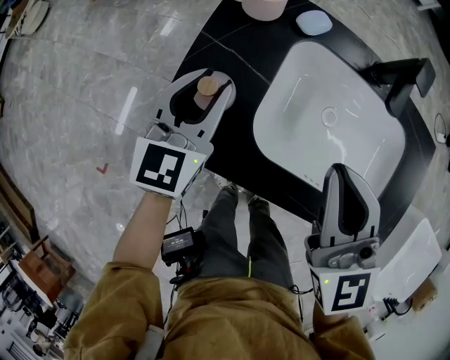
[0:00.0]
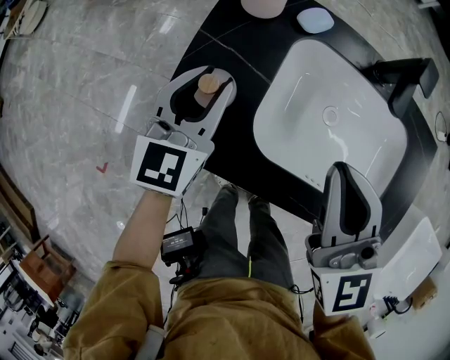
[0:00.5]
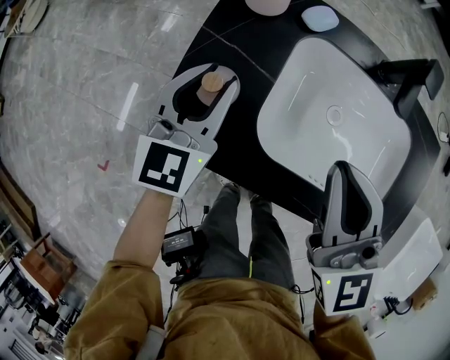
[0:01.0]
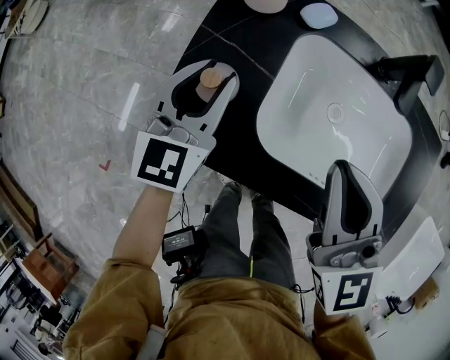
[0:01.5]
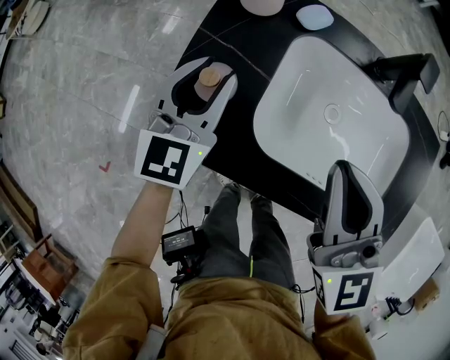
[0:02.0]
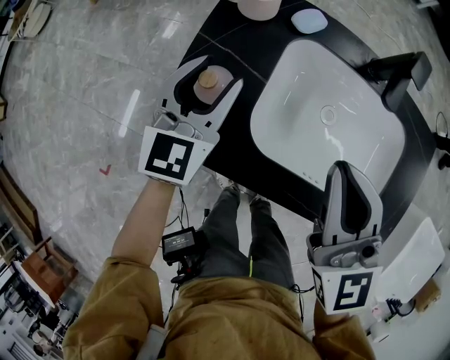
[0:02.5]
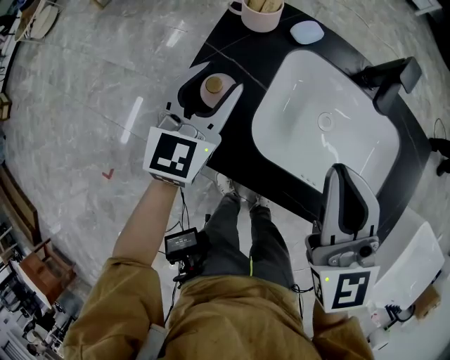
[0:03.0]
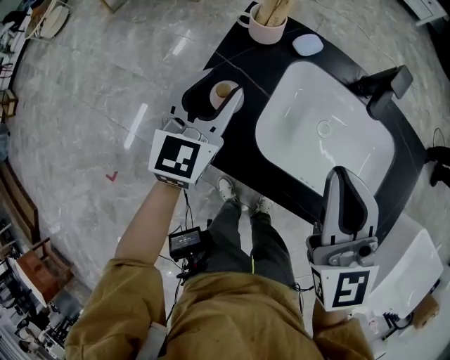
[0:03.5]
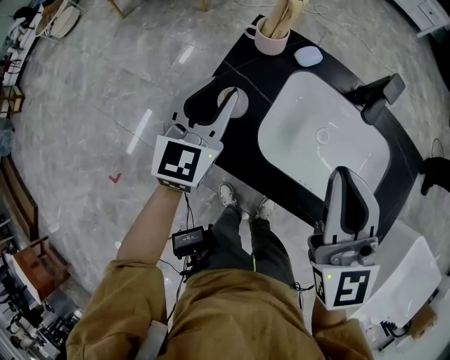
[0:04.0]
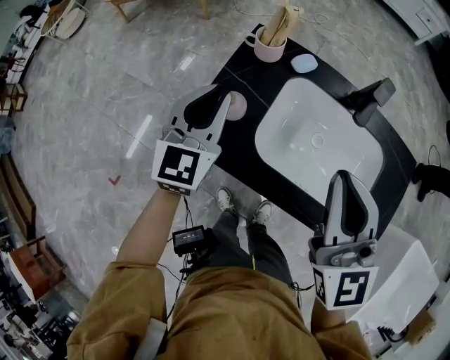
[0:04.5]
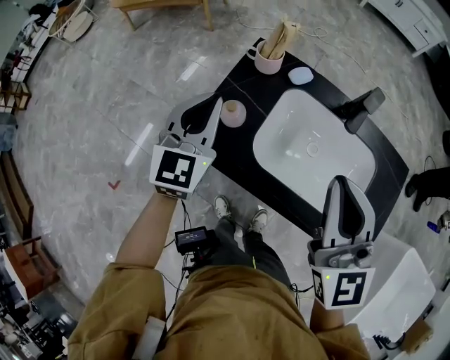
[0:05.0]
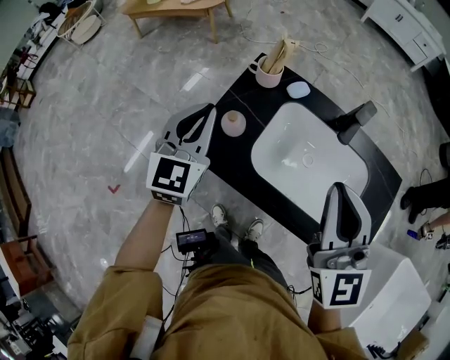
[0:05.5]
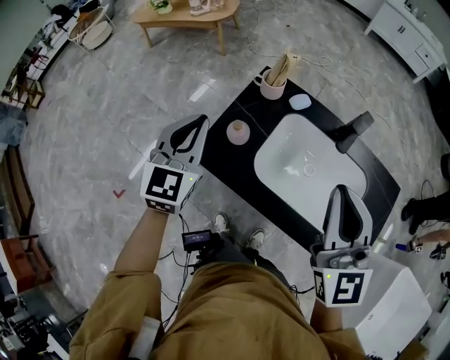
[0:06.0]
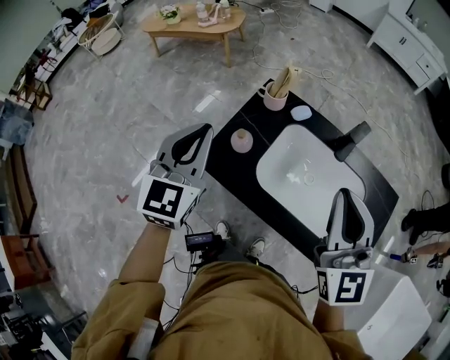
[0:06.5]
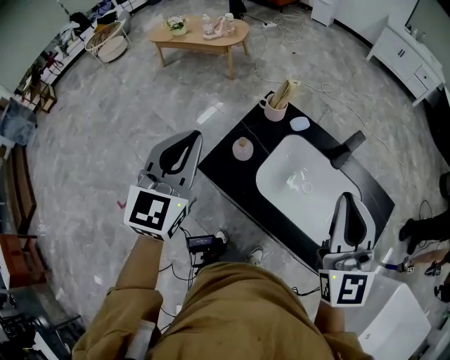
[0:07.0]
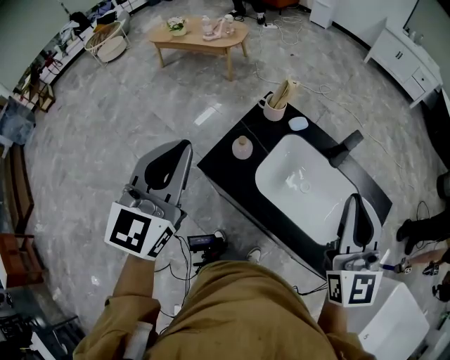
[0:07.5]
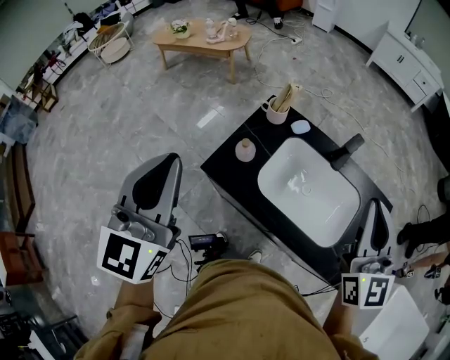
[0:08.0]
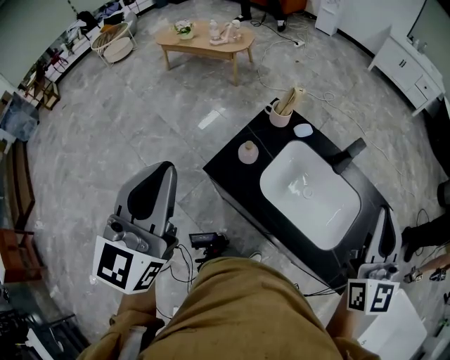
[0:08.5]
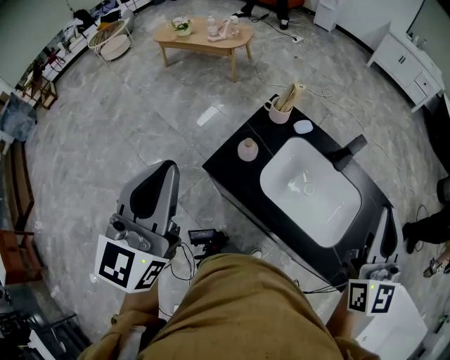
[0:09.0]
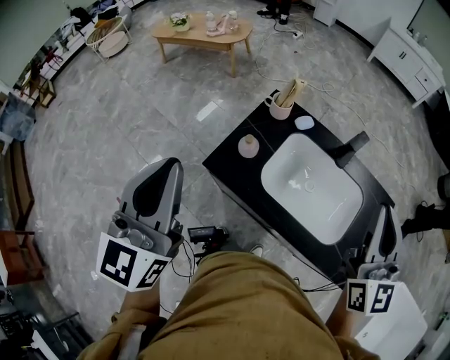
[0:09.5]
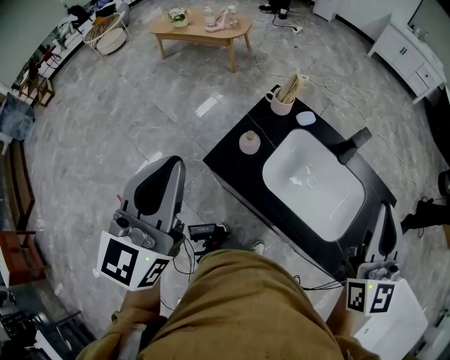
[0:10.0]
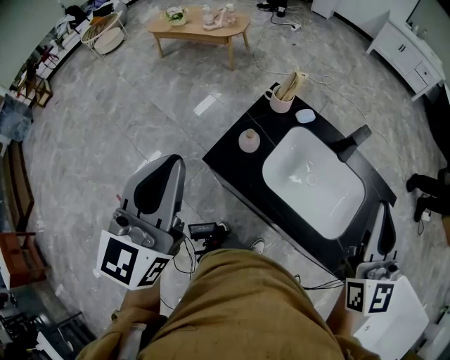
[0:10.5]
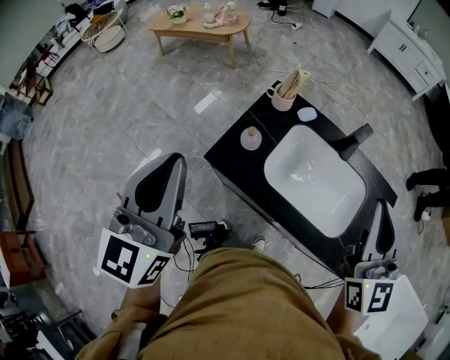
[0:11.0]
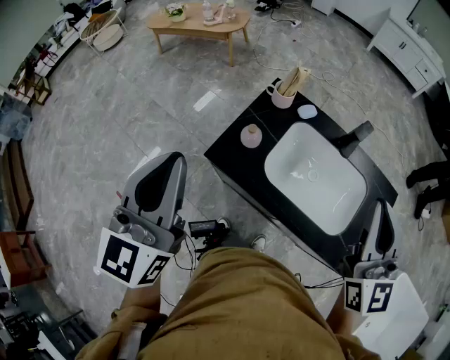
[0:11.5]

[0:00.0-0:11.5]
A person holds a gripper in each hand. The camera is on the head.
0:00.0 to 0:02.0: The grippers make only small movements.
0:02.0 to 0:04.0: Both grippers travel together upward, about 10 cm.
0:04.0 to 0:06.0: The left gripper travels upward and backward by some 10 cm, and closes up. Meanwhile the right gripper travels upward by approximately 5 cm.
0:06.0 to 0:07.5: The right gripper changes place by about 5 cm, while the left gripper goes some 15 cm upward and backward.
0:07.5 to 0:09.5: The left gripper moves some 5 cm.
0:09.5 to 0:11.5: There are only small adjustments of the grippers.

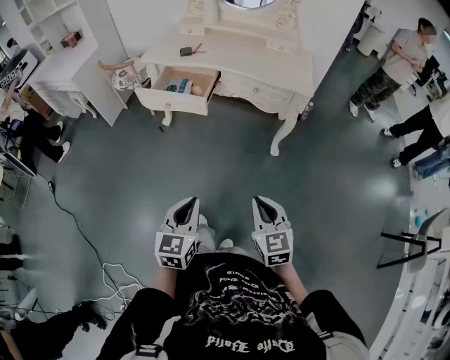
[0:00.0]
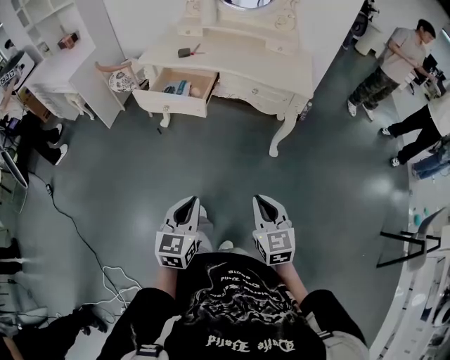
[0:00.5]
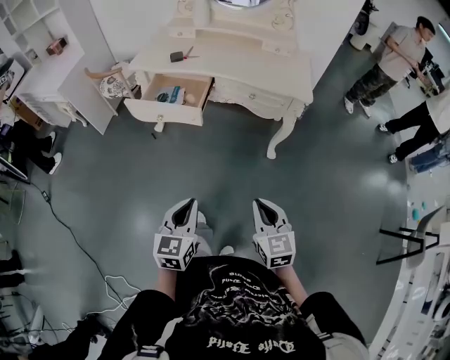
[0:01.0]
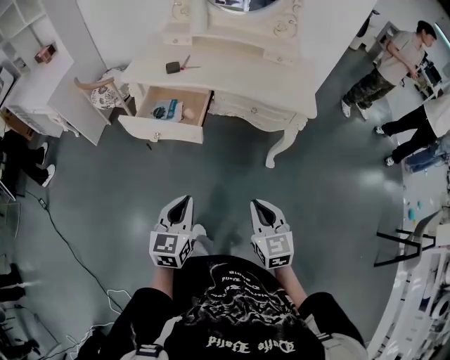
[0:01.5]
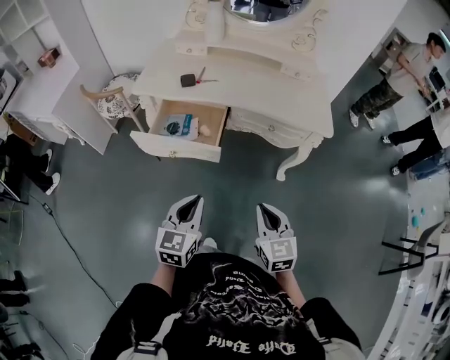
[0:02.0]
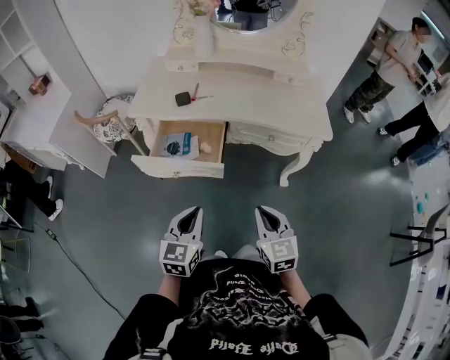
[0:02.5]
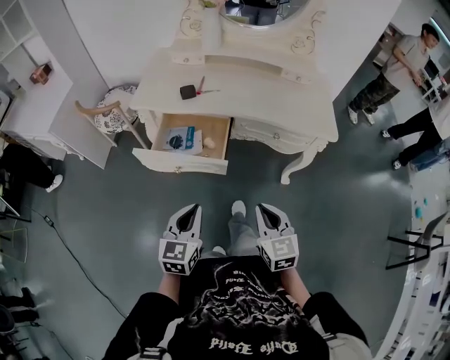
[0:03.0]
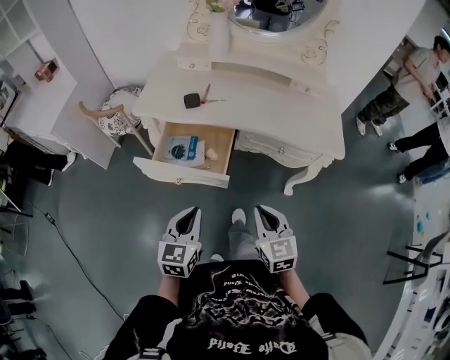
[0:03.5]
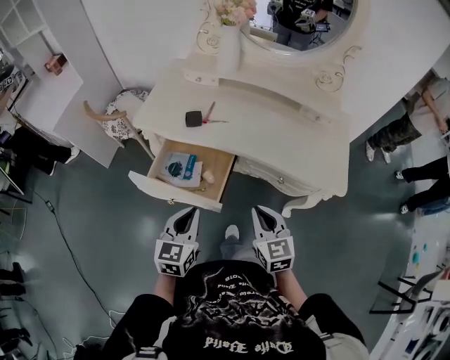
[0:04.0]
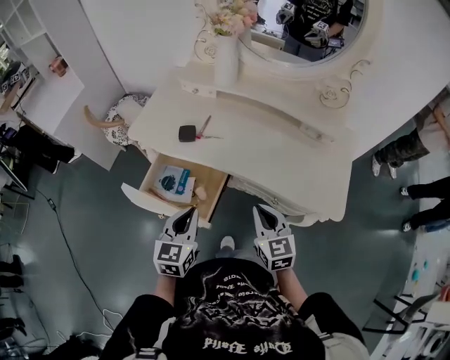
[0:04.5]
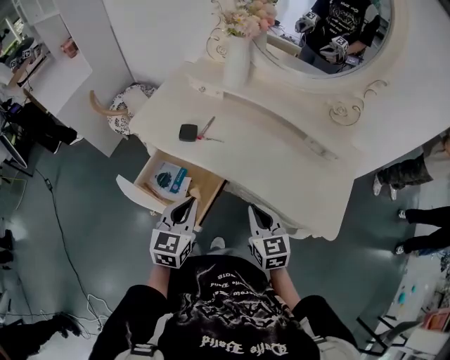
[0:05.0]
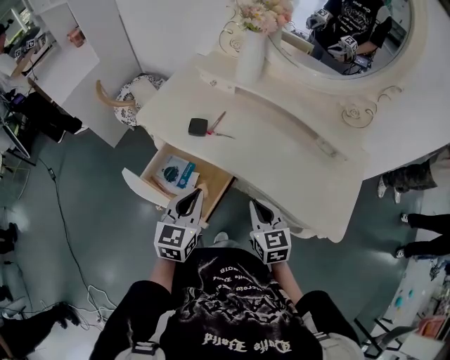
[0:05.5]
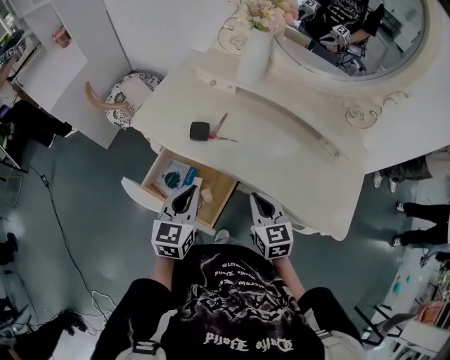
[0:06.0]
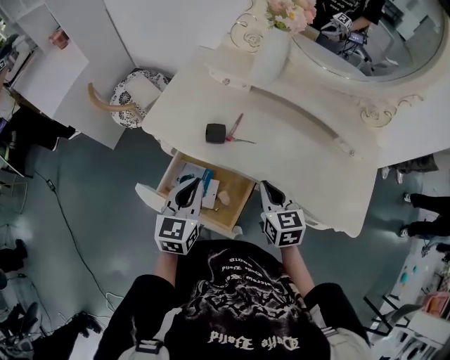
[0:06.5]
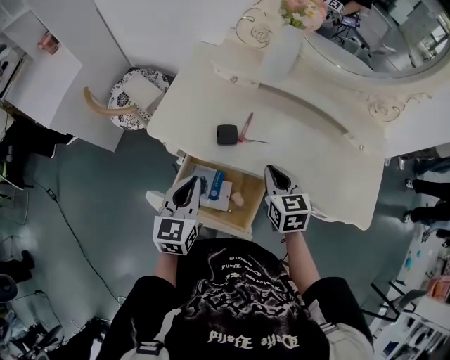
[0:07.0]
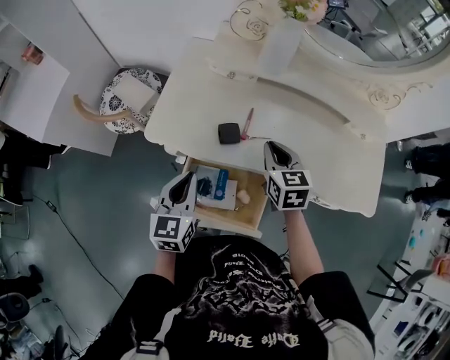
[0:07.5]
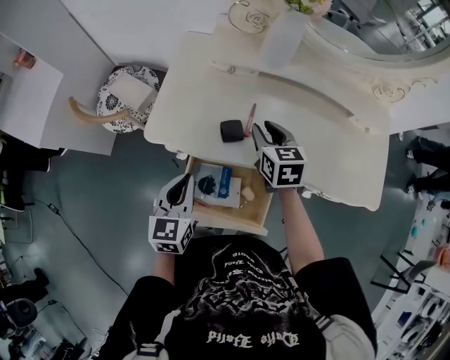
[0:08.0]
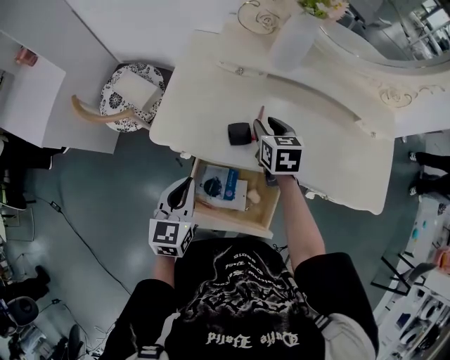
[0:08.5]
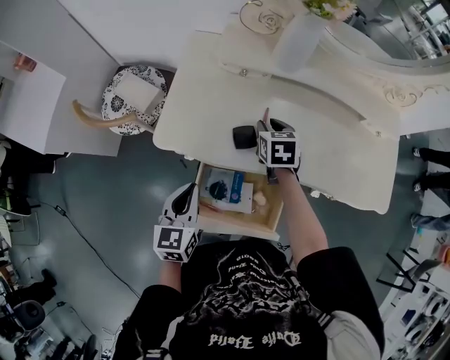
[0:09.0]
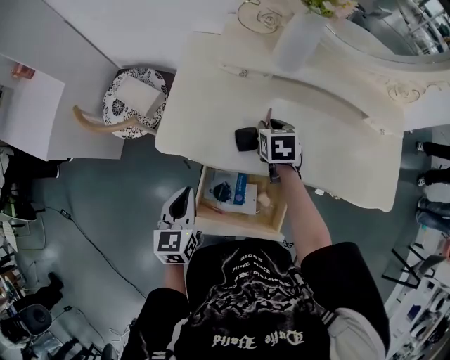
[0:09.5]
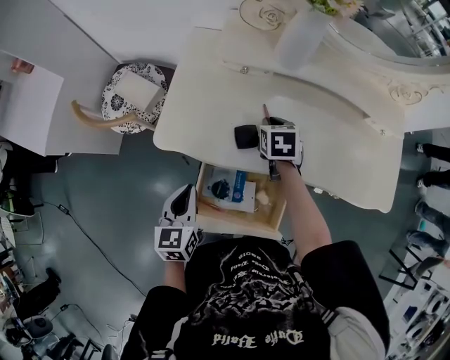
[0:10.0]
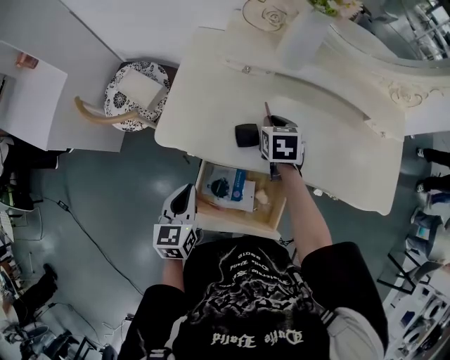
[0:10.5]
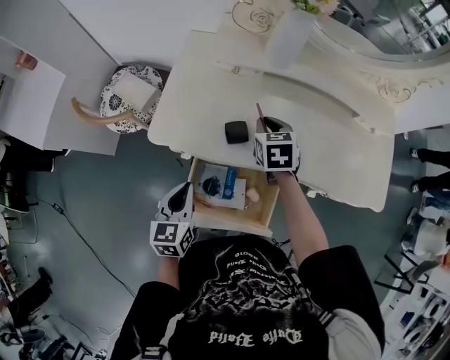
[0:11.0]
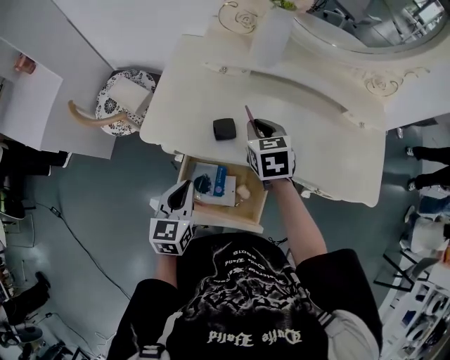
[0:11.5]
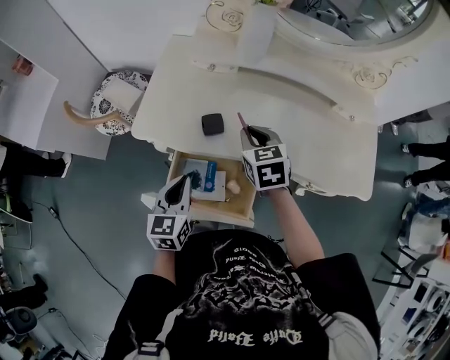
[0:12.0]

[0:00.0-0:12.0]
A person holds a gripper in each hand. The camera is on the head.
0:00.0 to 0:02.0: The left gripper is displaced forward by approximately 25 cm. Meanwhile the right gripper is displaced forward and to the left by about 25 cm.
0:02.0 to 0:04.0: The two grippers go roughly 20 cm forward.
0:04.0 to 0:06.0: Both grippers travel together forward, some 15 cm.
0:06.0 to 0:08.0: The left gripper heads to the left and forward, covering about 15 cm. Meanwhile the right gripper heads forward and to the left, covering some 25 cm, and opens its fingers.
0:08.0 to 0:10.0: The left gripper shifts by some 5 cm, while the right gripper shifts about 10 cm downward, and turns by some 20 degrees.
0:10.0 to 0:12.0: The right gripper heads backward and upward, covering some 15 cm. The left gripper shifts some 10 cm to the right.

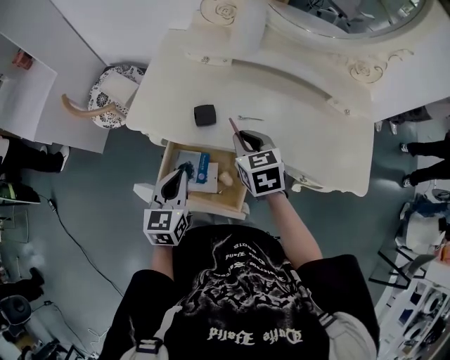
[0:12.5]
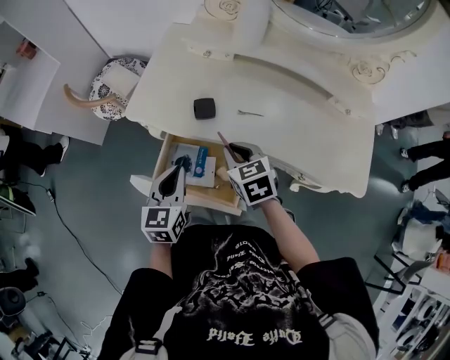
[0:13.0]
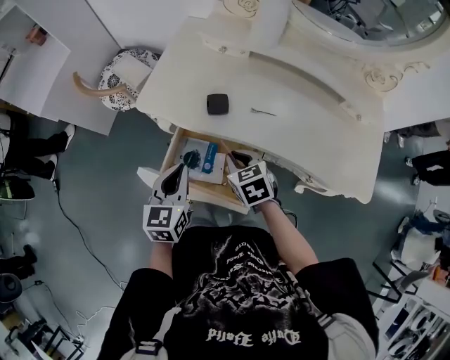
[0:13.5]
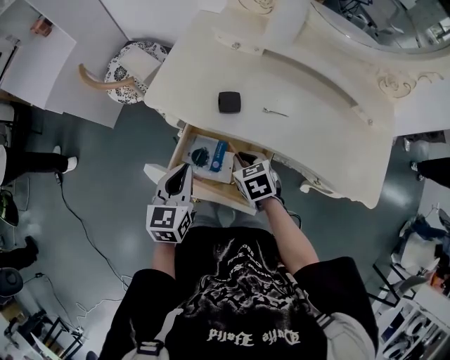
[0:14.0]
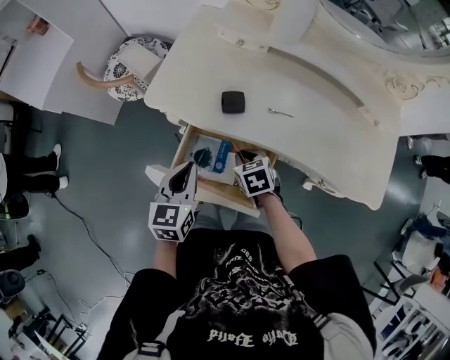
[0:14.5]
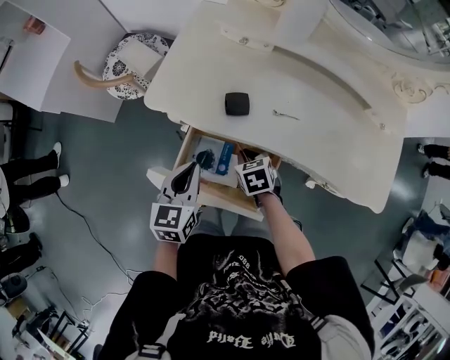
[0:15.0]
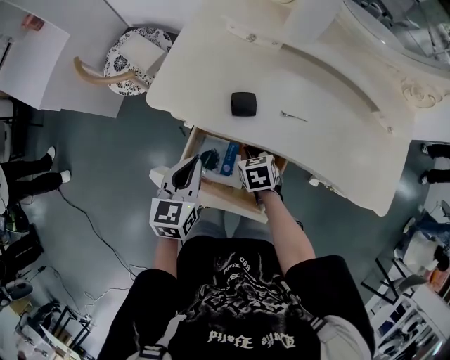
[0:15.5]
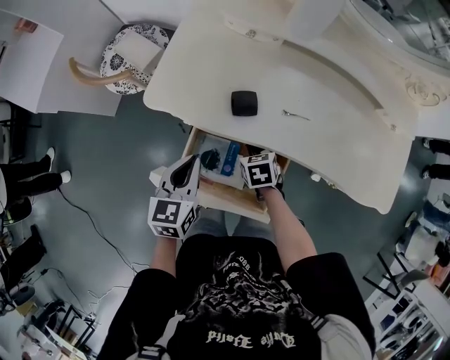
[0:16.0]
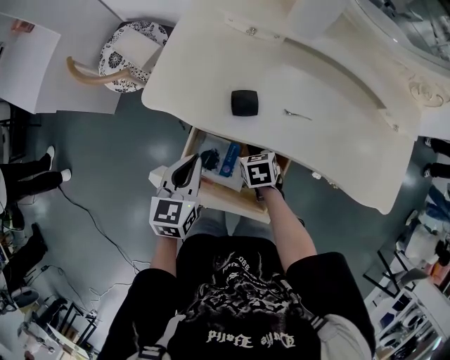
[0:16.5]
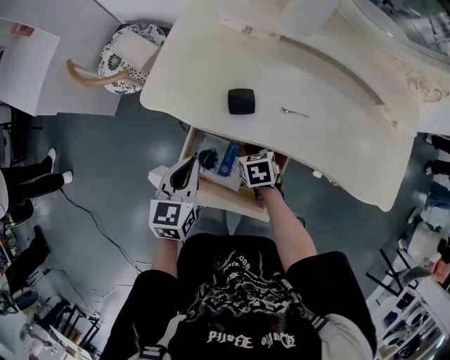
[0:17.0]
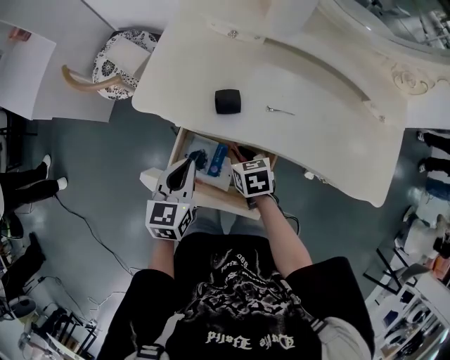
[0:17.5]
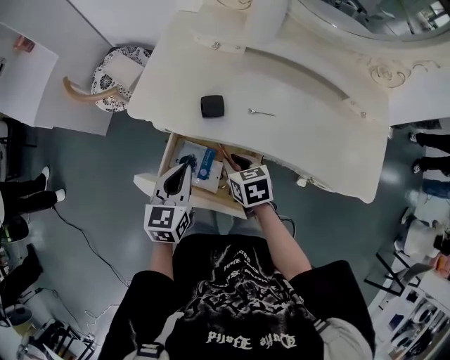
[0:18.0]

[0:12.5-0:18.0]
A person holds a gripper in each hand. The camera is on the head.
0:12.5 to 0:14.5: The right gripper is displaced downward and to the left by about 15 cm, and changes its angle by about 20 degrees.
0:14.5 to 0:16.0: The right gripper travels downward by about 5 cm.
0:16.0 to 0:18.0: The right gripper goes approximately 10 cm upward. The left gripper ends up some 5 cm from where it was.
